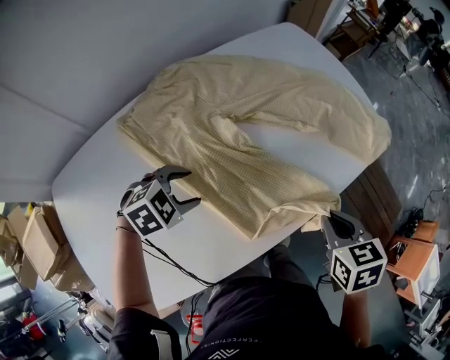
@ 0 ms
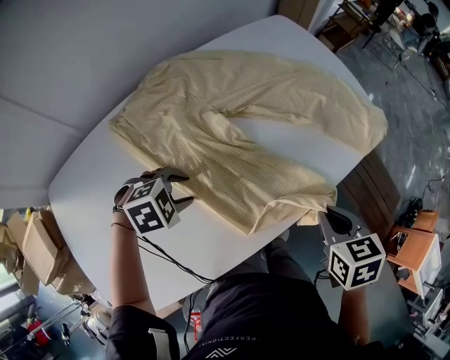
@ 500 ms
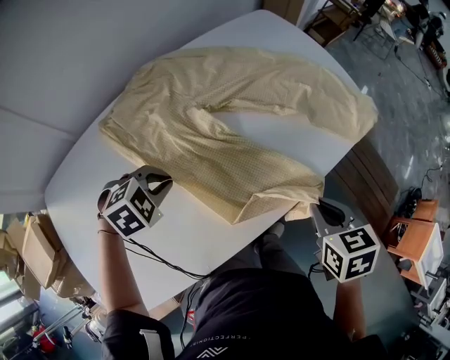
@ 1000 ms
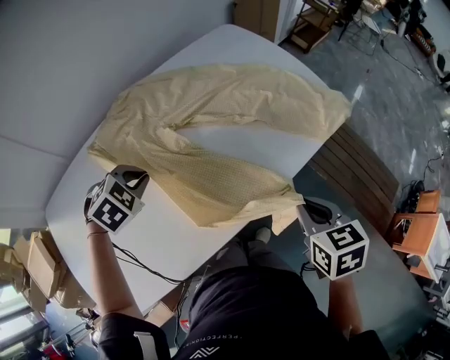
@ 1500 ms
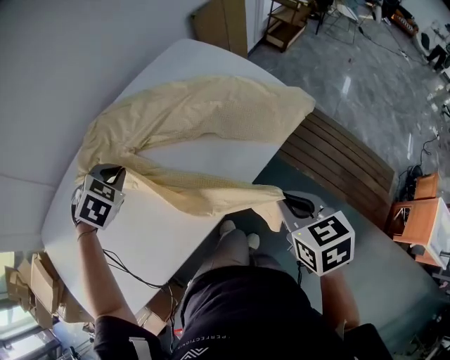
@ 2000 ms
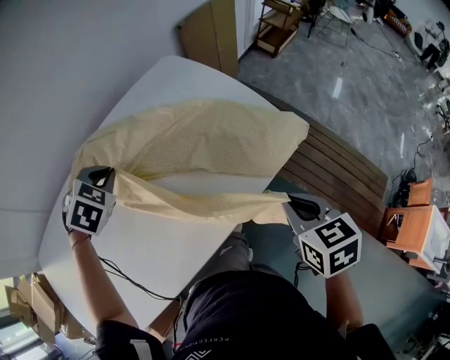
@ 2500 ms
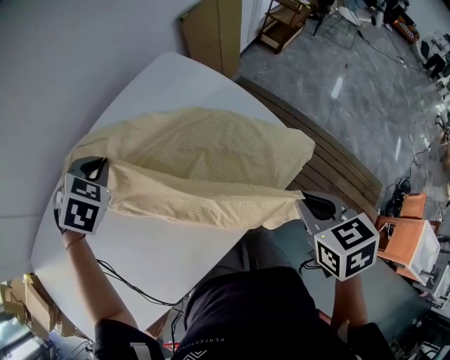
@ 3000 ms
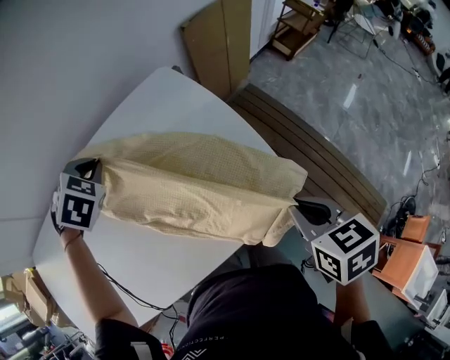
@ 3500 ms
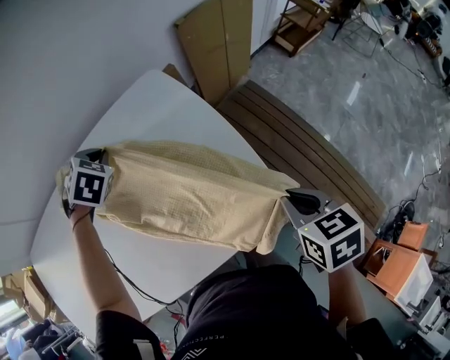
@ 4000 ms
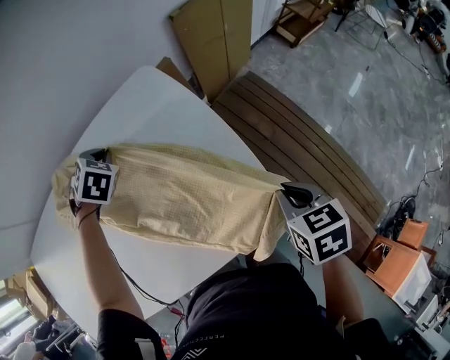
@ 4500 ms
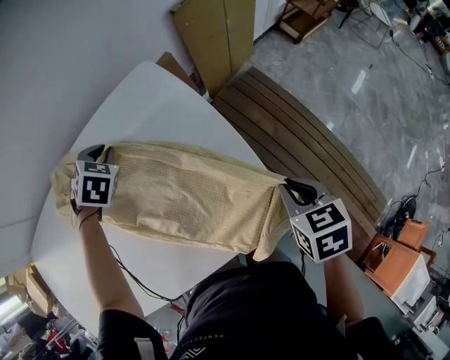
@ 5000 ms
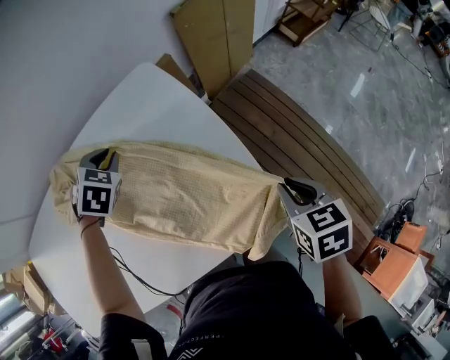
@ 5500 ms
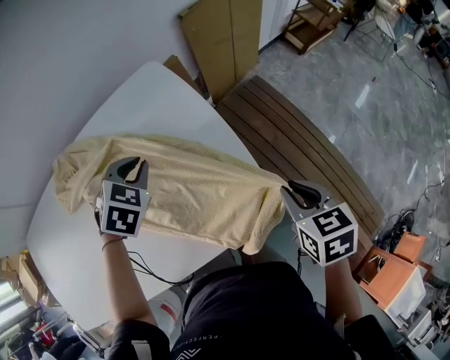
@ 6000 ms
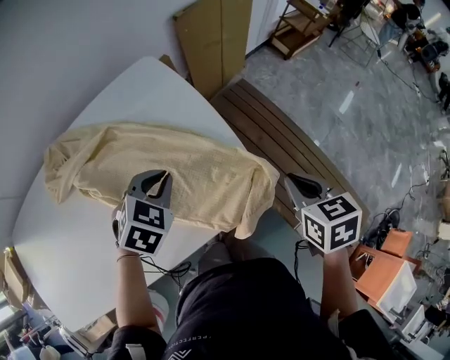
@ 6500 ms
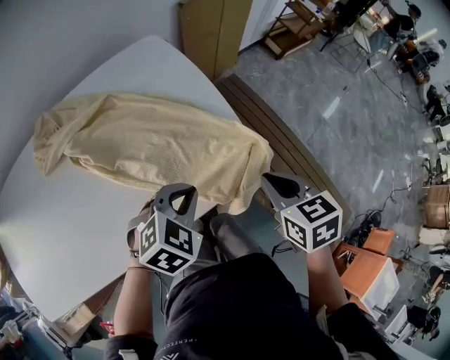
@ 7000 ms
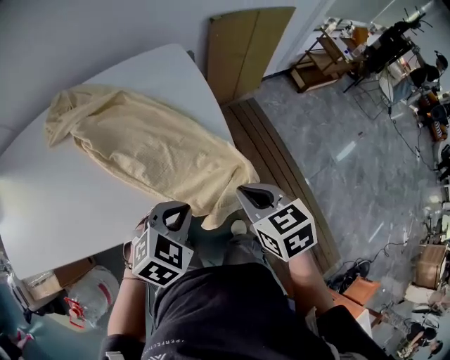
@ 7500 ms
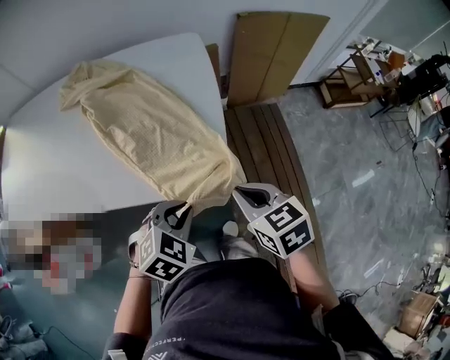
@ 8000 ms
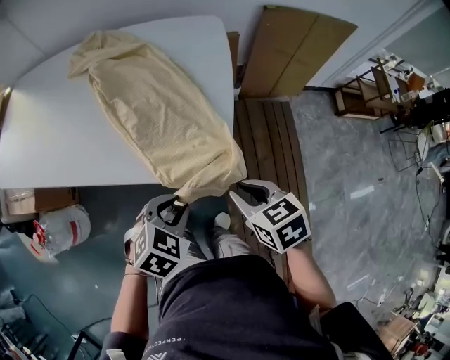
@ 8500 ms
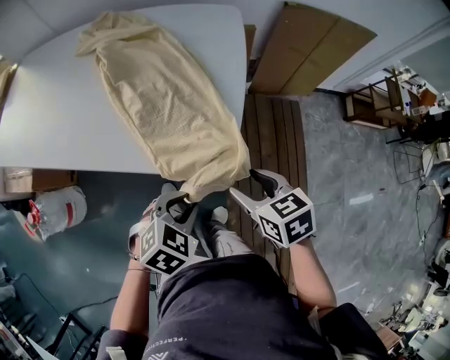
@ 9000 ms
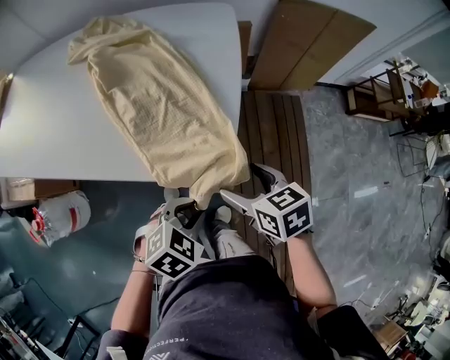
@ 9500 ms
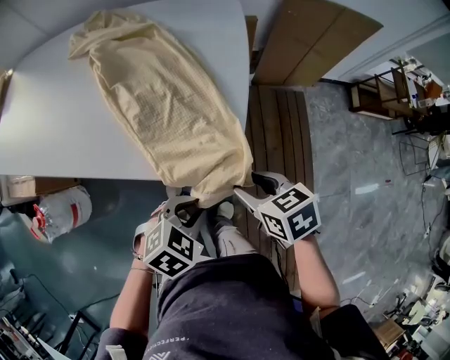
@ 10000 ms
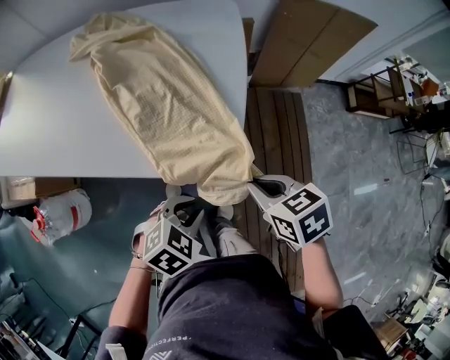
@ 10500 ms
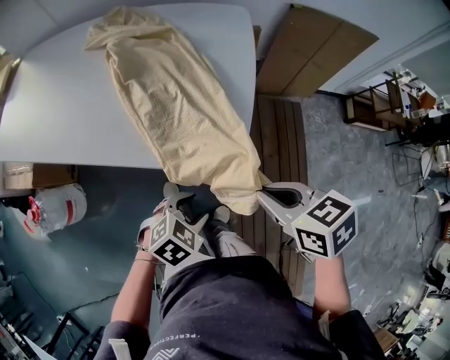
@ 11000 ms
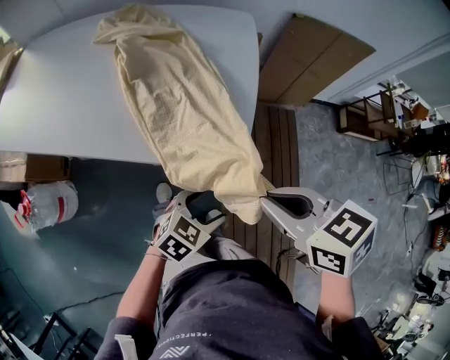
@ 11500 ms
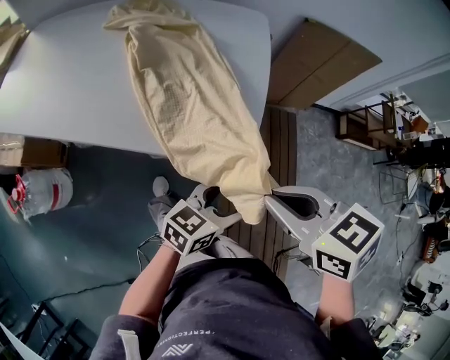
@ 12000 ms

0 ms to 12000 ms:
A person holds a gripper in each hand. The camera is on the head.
0 ms to 2000 ms: The right gripper changes place by roughly 15 cm; the left gripper moves about 15 cm, turns by approximately 30 degrees, and closes.
2000 ms to 4000 ms: The right gripper moves to the right and forward, approximately 35 cm. Meanwhile the left gripper shifts some 30 cm forward and to the right, and rotates about 20 degrees.
4000 ms to 6000 ms: The left gripper moves backward and to the right, some 15 cm; the right gripper shifts by approximately 5 cm.
6000 ms to 8000 ms: The left gripper ends up approximately 35 cm from where it was. The right gripper changes place by about 10 cm, and rotates about 40 degrees.
8000 ms to 10000 ms: Both grippers travel together downward, some 5 cm. The right gripper opens up.
10000 ms to 12000 ms: The left gripper shifts roughly 5 cm to the right, angles its fingers upward, by some 40 degrees, and opens up, while the right gripper heads upward, covering some 15 cm, and closes up.

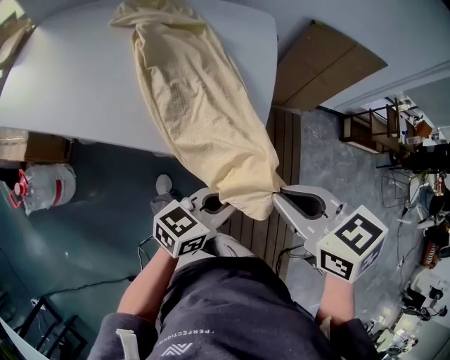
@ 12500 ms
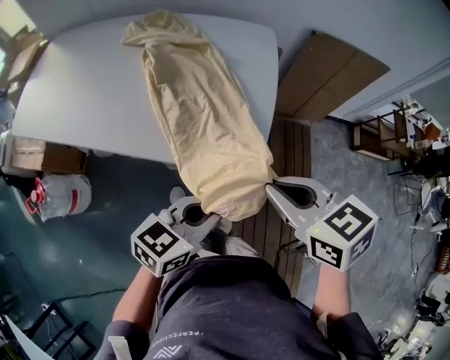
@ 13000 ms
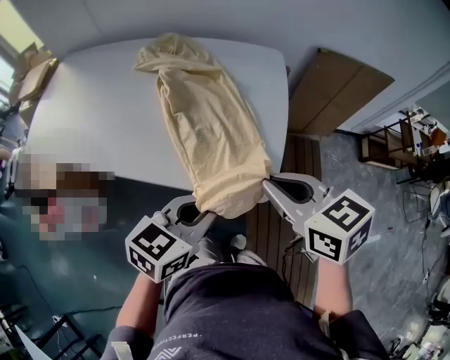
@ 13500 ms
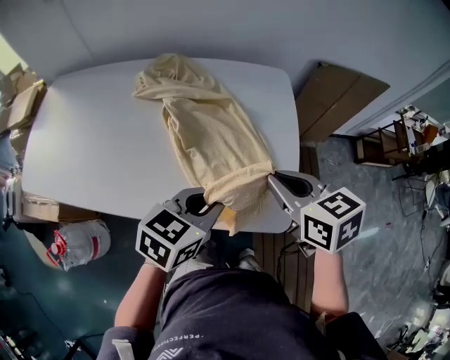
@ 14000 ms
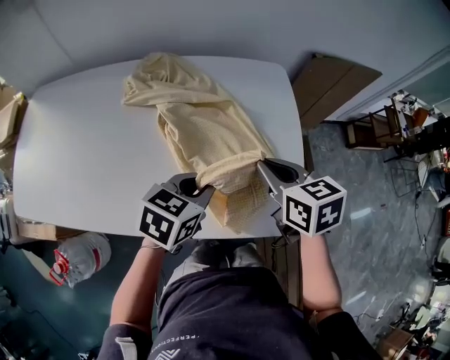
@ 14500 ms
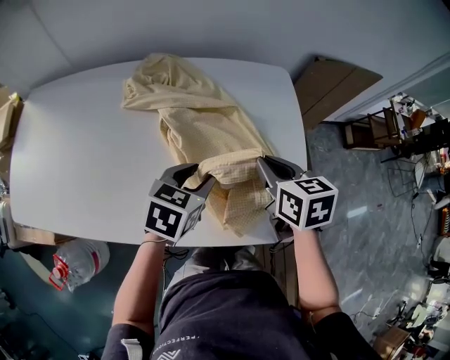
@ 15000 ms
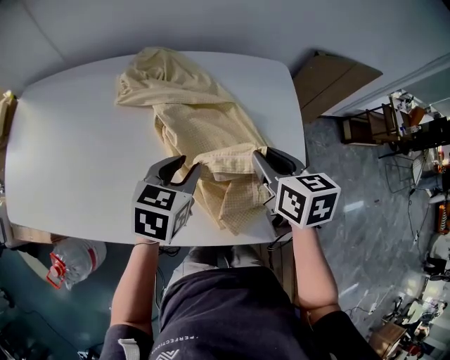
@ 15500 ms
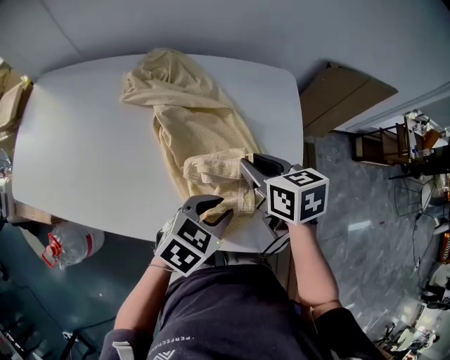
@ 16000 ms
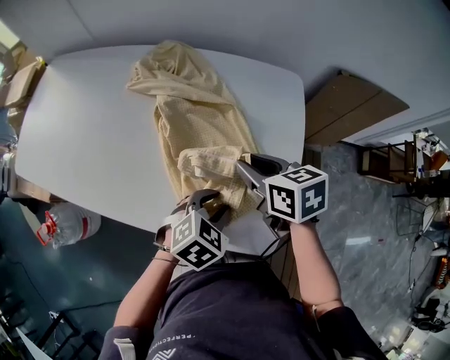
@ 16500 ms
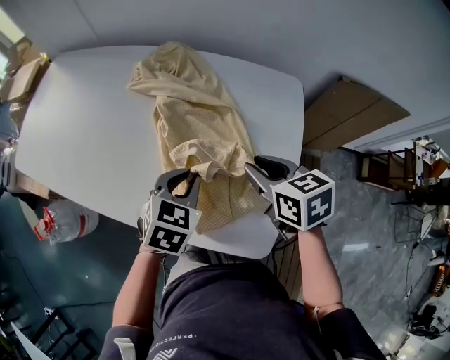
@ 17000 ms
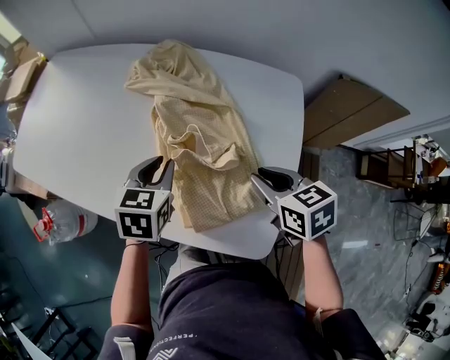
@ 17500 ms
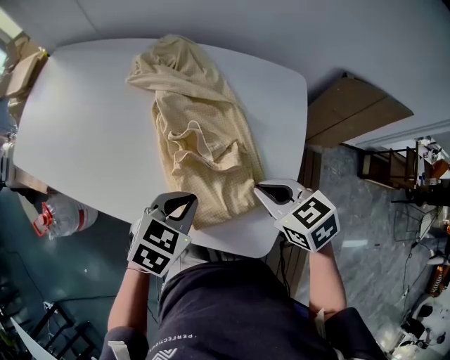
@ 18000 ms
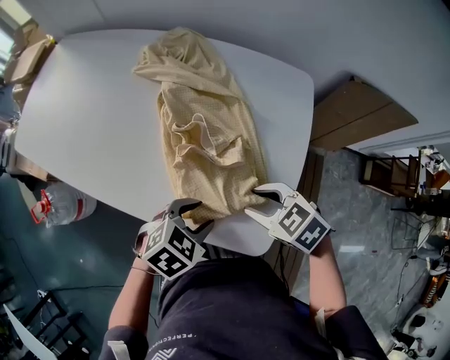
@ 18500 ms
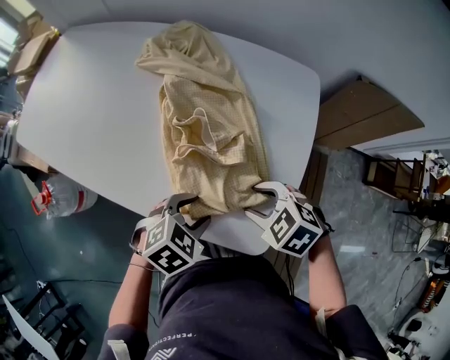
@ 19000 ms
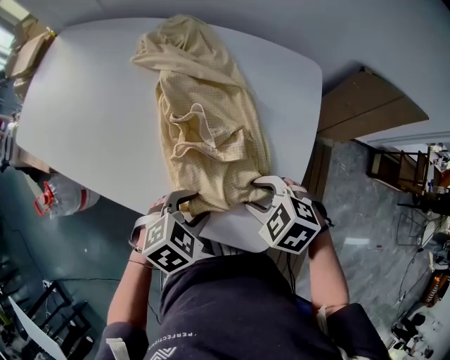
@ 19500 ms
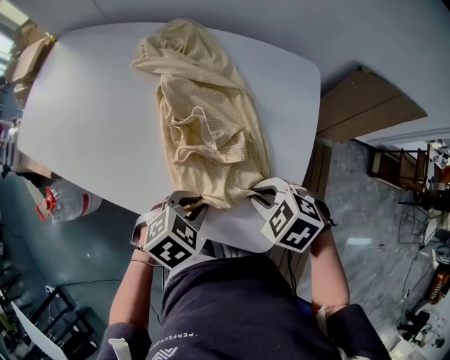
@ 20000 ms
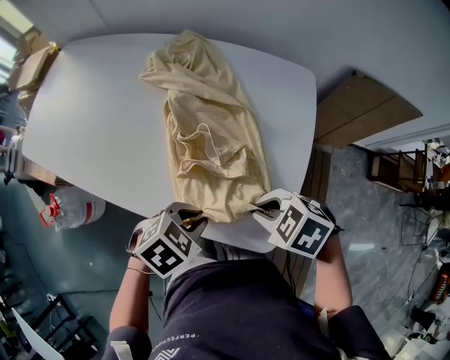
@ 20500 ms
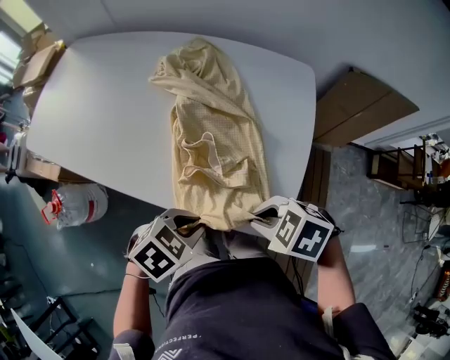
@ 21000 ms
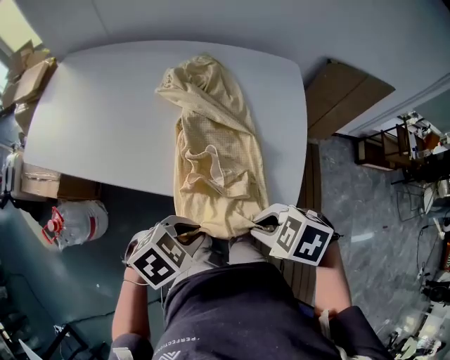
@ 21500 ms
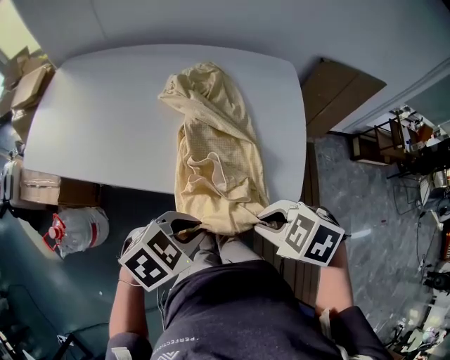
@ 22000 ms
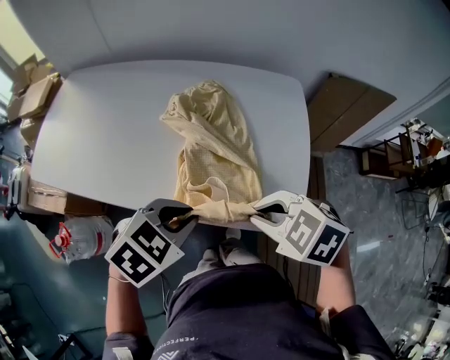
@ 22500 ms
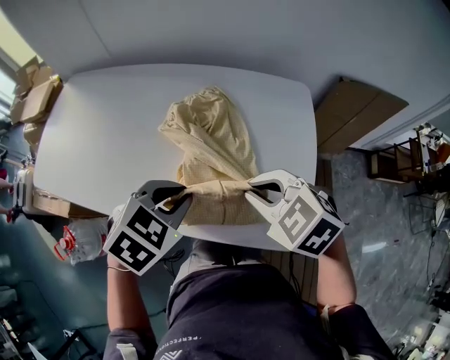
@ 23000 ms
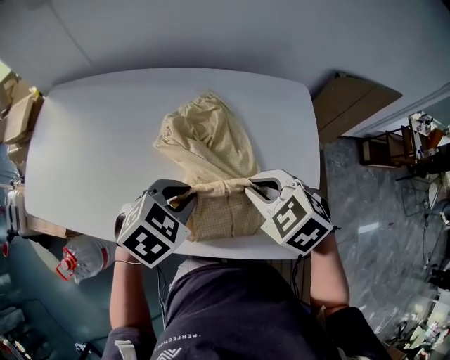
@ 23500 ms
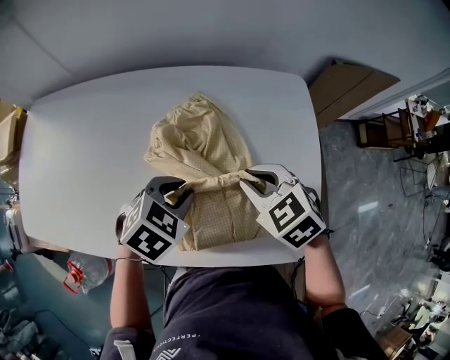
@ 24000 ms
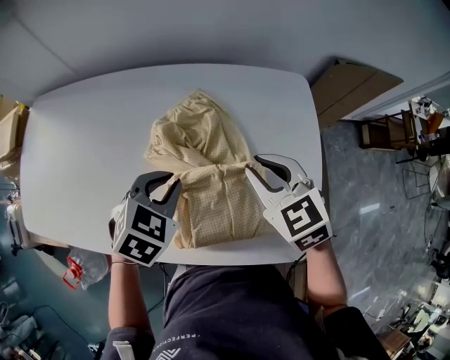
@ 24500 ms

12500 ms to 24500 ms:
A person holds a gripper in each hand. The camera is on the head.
12500 ms to 14500 ms: Both grippers move forward and to the left, roughly 30 cm. The left gripper swivels roughly 30 degrees, while the right gripper changes its angle by about 30 degrees.
14500 ms to 16500 ms: The right gripper moves roughly 5 cm, and opens its fingers, while the left gripper heads to the right and downward, covering some 10 cm, changes its angle by about 20 degrees, and opens up.
16500 ms to 18500 ms: The right gripper moves about 10 cm, changes its angle by roughly 40 degrees, and closes, then reopens, while the left gripper closes, then opens again.
18500 ms to 20500 ms: The right gripper closes. The left gripper closes up.
20500 ms to 22500 ms: The right gripper changes place by about 15 cm. Meanwhile the left gripper heads upward, covering roughly 10 cm.
22500 ms to 24500 ms: The left gripper moves approximately 25 cm; the right gripper shifts by about 25 cm, and changes its angle by about 40 degrees.

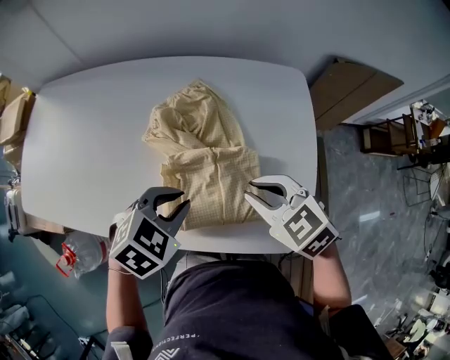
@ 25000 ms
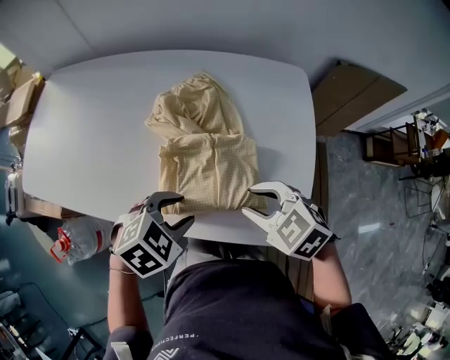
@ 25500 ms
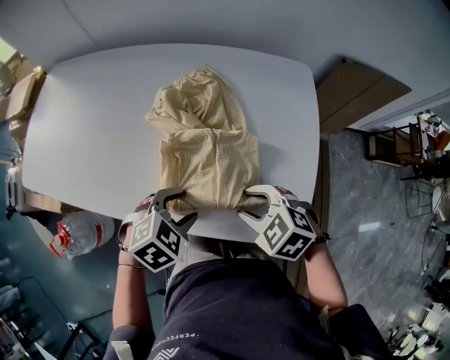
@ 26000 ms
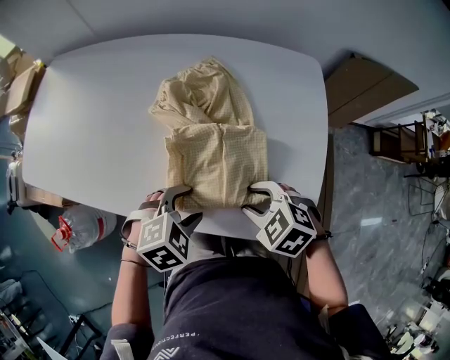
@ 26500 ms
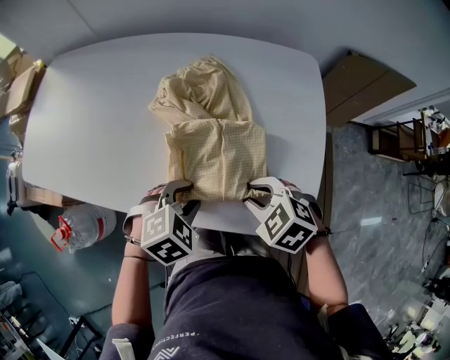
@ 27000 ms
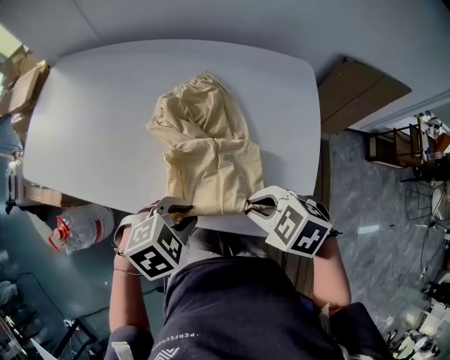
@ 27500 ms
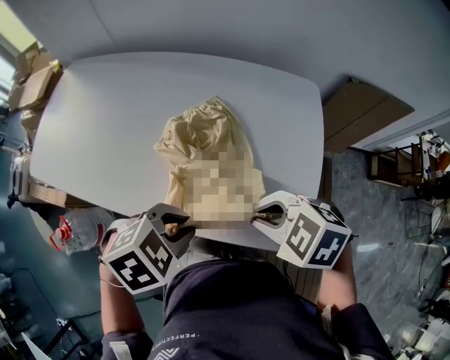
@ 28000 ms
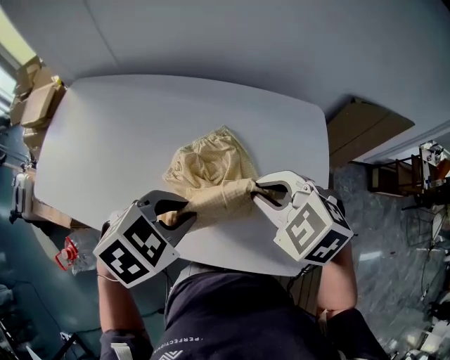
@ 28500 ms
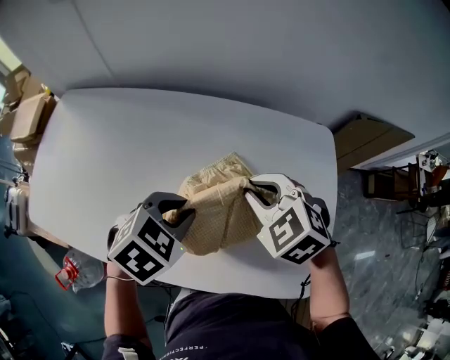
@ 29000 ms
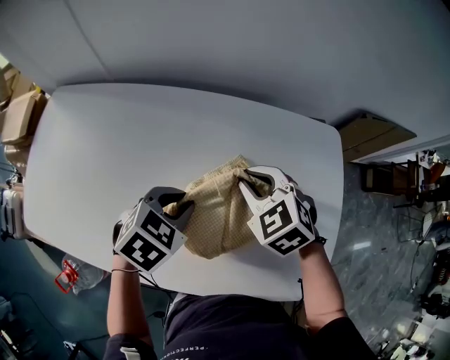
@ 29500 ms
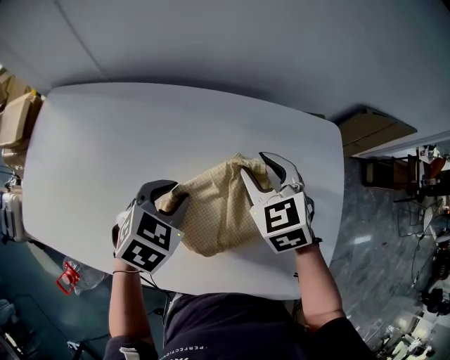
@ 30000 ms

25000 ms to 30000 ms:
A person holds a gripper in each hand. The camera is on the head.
25000 ms to 27500 ms: The left gripper changes place by some 10 cm, and opens and closes again. The right gripper ends up roughly 10 cm from where it was, swivels roughly 20 degrees, and opens, then closes again.
27500 ms to 30000 ms: The left gripper travels upward and back again, roughly 10 cm each way, and turns by some 20 degrees. The right gripper moves about 35 cm, changes its angle by some 40 degrees, and opens.
